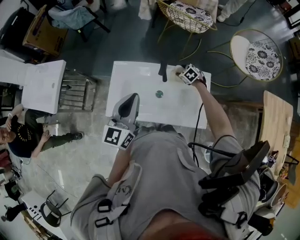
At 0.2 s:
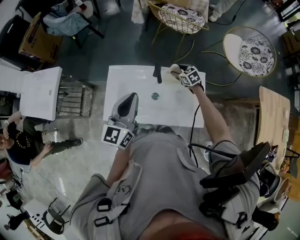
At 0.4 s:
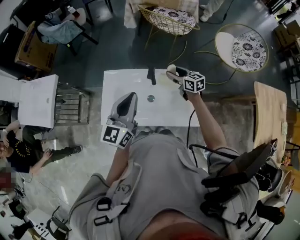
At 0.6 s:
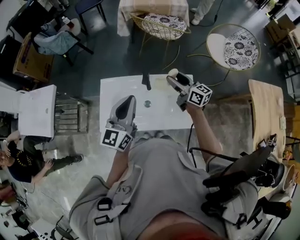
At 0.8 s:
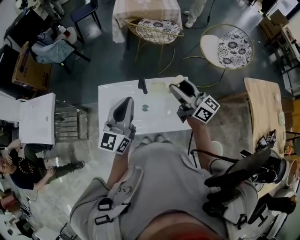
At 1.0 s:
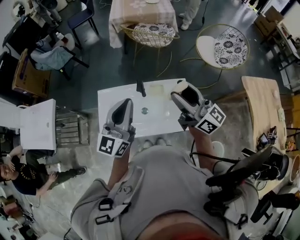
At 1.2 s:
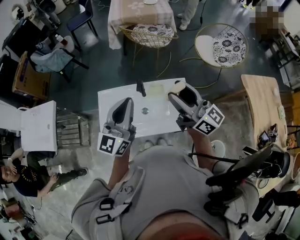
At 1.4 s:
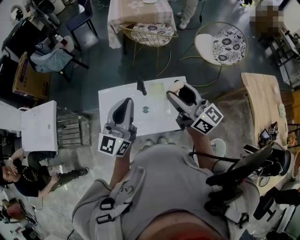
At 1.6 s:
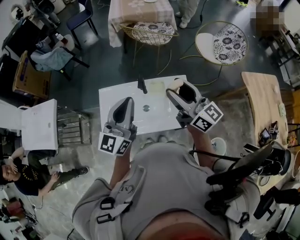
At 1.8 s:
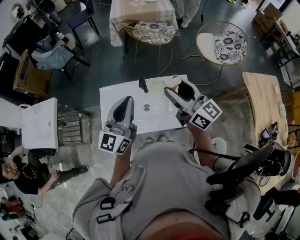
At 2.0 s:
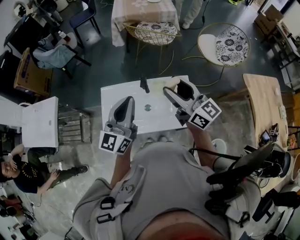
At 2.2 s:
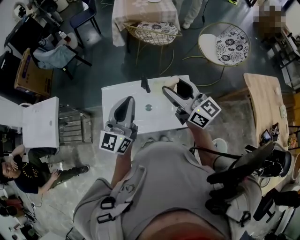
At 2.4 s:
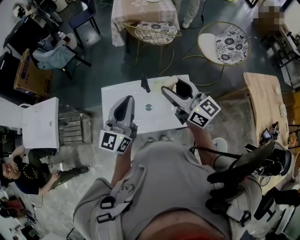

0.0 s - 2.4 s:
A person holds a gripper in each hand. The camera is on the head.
0.0 s - 1.2 s: The right gripper moves upward and backward, roughly 50 cm, and tilts its fingers approximately 80 degrees upward. Meanwhile the left gripper moves upward and to the right, about 10 cm, and swivels some 20 degrees.
1.2 s - 2.4 s: The right gripper changes place by roughly 5 cm.

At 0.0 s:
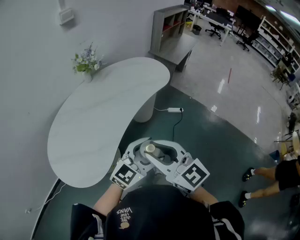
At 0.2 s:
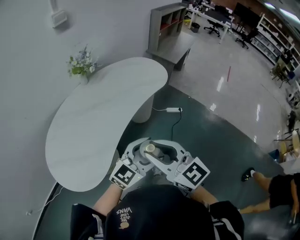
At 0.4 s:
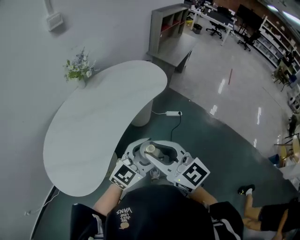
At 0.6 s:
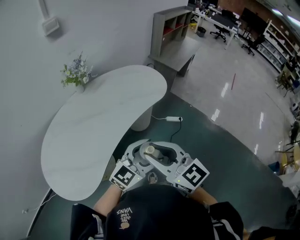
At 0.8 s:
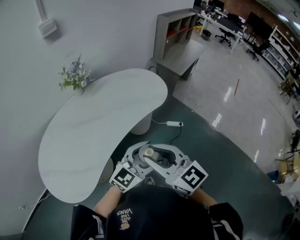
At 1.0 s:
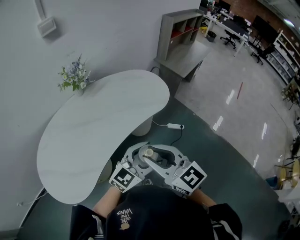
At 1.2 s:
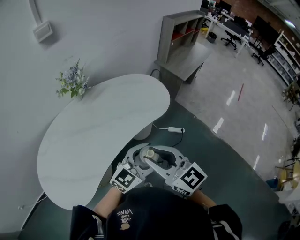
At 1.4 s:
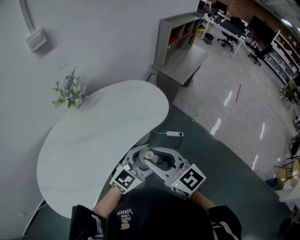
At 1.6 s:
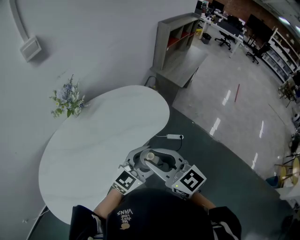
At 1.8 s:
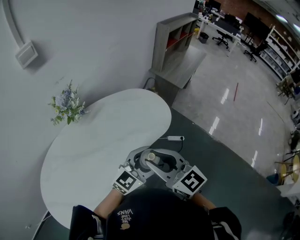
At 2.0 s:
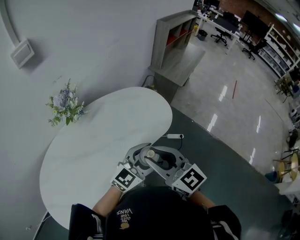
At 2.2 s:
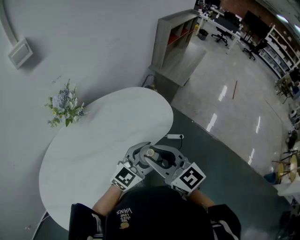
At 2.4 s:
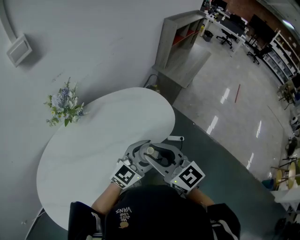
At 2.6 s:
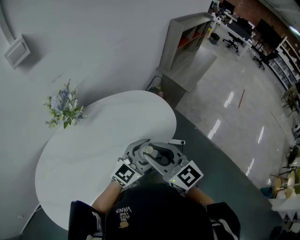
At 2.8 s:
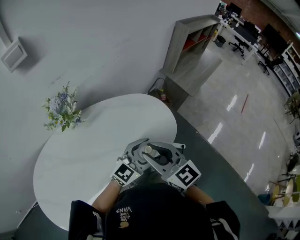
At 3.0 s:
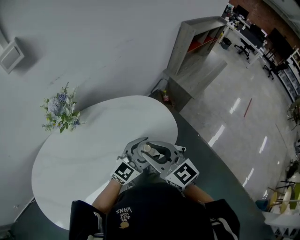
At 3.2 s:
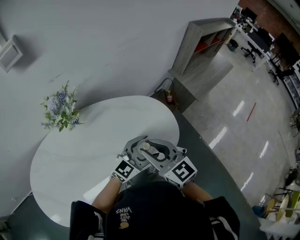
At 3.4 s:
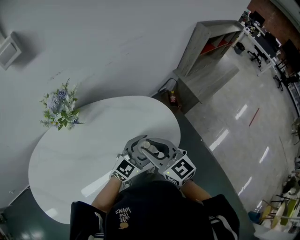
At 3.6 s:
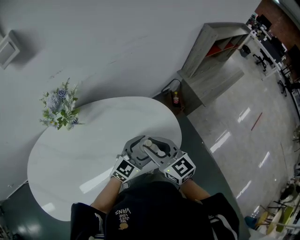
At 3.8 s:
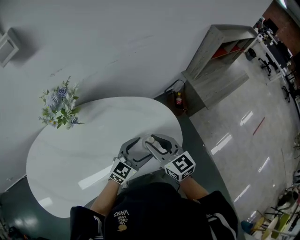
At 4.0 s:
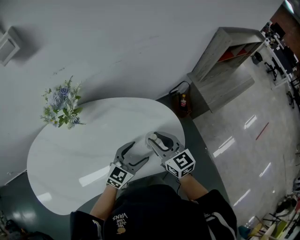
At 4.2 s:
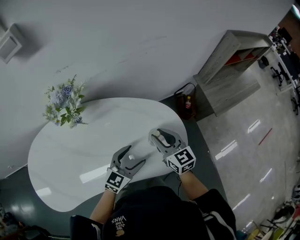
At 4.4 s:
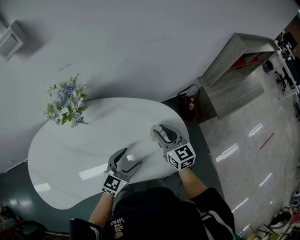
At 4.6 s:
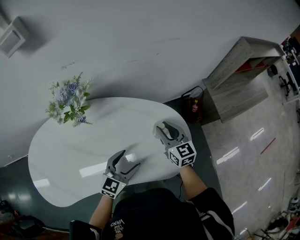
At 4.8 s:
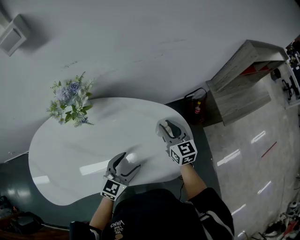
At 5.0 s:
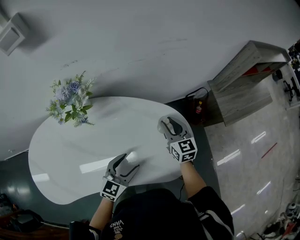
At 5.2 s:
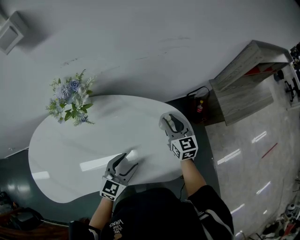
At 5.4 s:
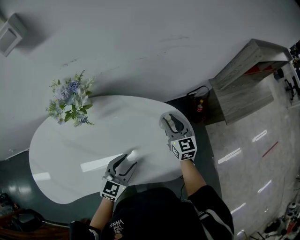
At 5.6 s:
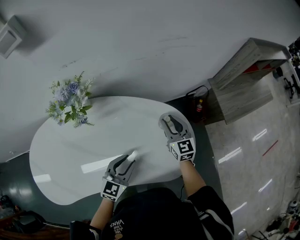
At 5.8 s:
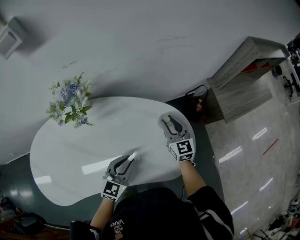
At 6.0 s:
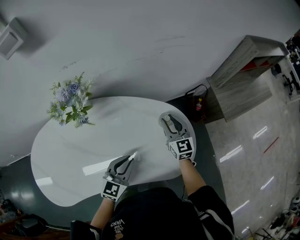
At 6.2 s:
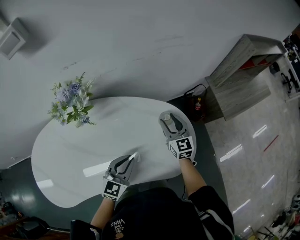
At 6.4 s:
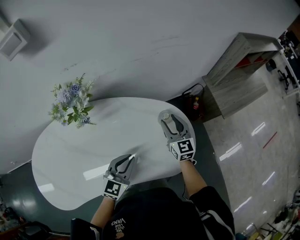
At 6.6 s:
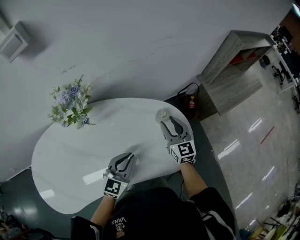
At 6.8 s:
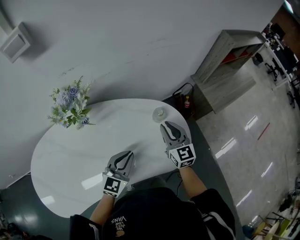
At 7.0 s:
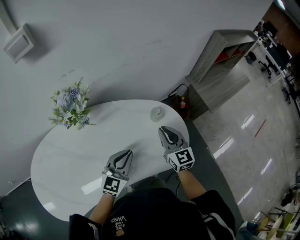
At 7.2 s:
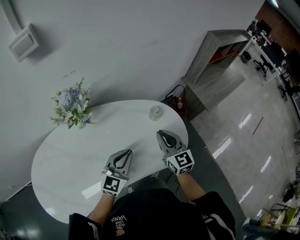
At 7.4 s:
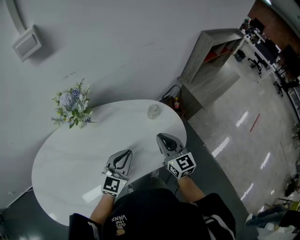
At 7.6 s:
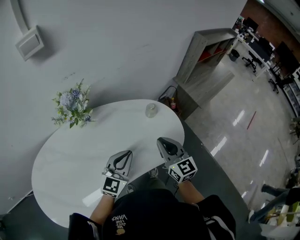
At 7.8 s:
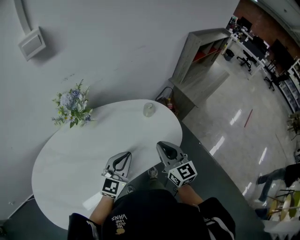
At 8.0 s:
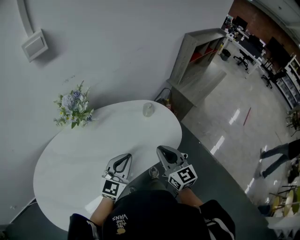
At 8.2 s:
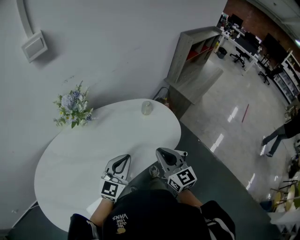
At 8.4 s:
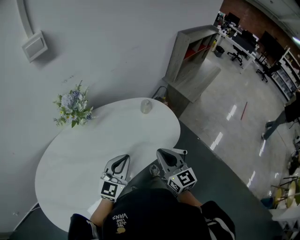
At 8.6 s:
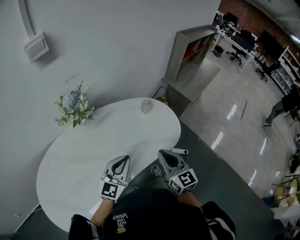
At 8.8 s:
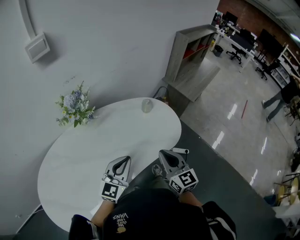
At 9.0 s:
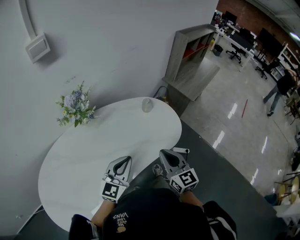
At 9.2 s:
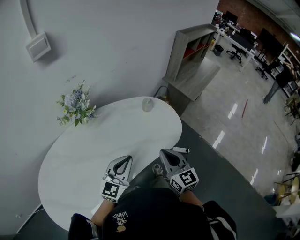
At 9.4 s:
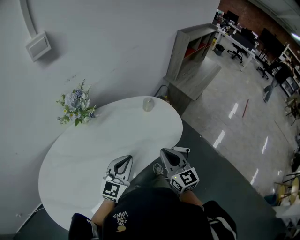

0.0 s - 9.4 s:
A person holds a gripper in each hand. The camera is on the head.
0.0 s - 1.6 s: Both grippers move forward, roughly 35 cm.
1.6 s - 3.2 s: Both grippers move forward, about 25 cm.
3.2 s - 4.8 s: The left gripper travels to the left, downward and forward by about 15 cm, and turns by about 40 degrees, while the right gripper goes about 30 cm forward and downward.
4.8 s - 6.2 s: The left gripper closes its fingers.
6.2 s - 7.8 s: The left gripper travels upward and backward by some 15 cm, and changes its angle by about 20 degrees, while the right gripper is displaced backward and upward by roughly 30 cm, and closes its fingers.
7.8 s - 9.4 s: The grippers both shift backward by some 10 cm.

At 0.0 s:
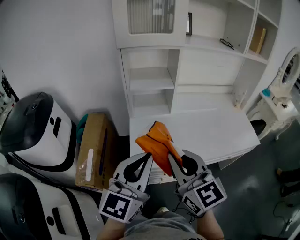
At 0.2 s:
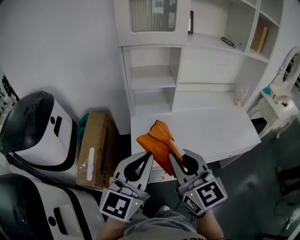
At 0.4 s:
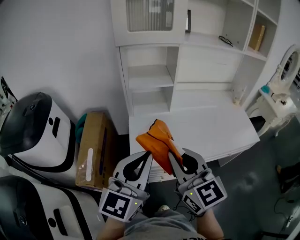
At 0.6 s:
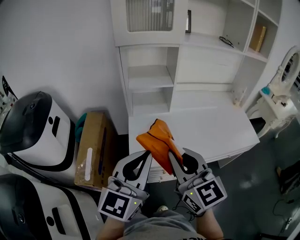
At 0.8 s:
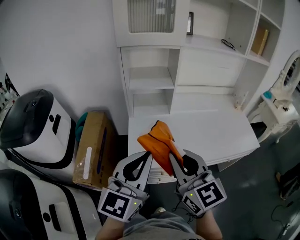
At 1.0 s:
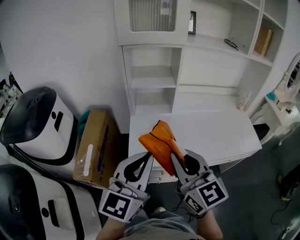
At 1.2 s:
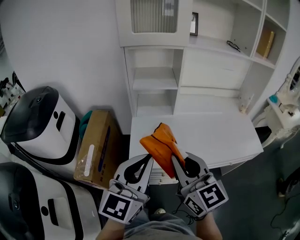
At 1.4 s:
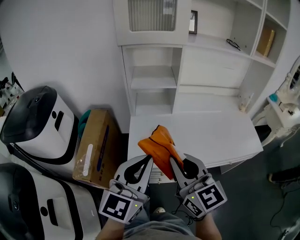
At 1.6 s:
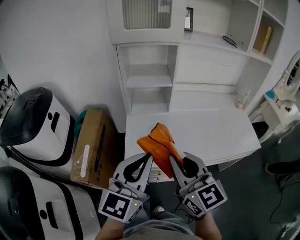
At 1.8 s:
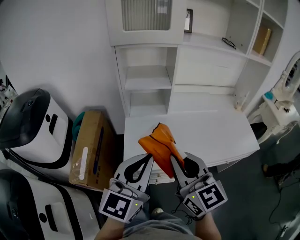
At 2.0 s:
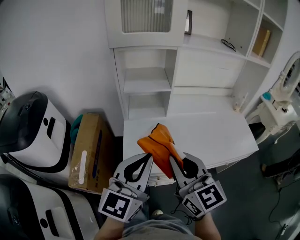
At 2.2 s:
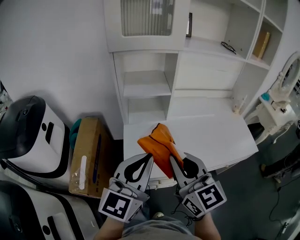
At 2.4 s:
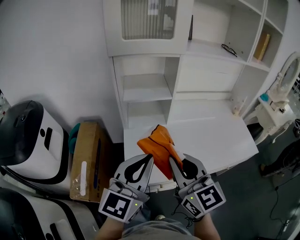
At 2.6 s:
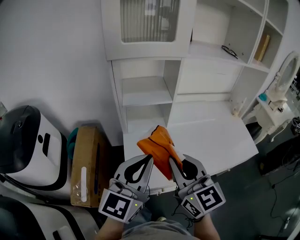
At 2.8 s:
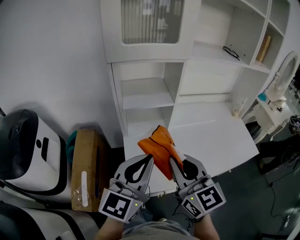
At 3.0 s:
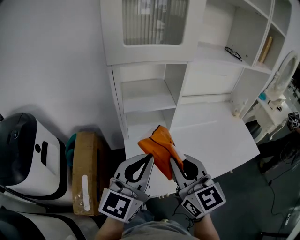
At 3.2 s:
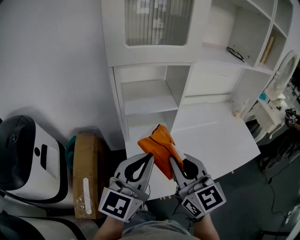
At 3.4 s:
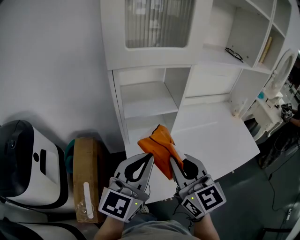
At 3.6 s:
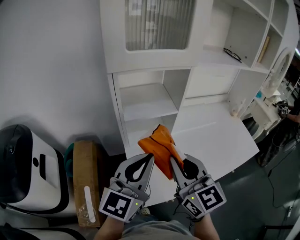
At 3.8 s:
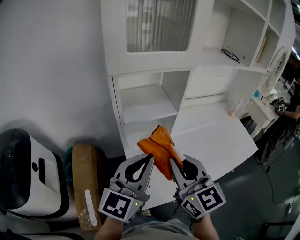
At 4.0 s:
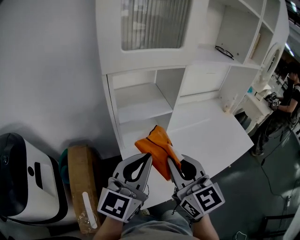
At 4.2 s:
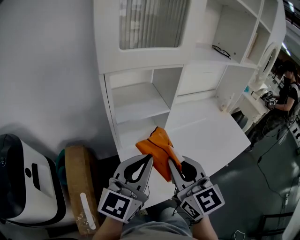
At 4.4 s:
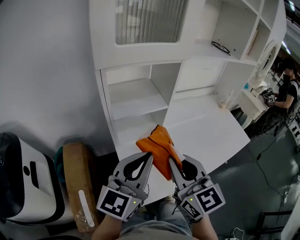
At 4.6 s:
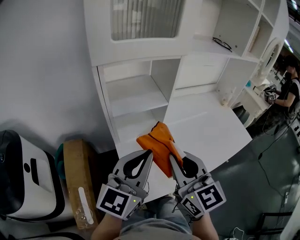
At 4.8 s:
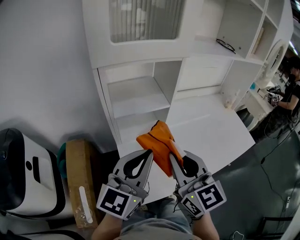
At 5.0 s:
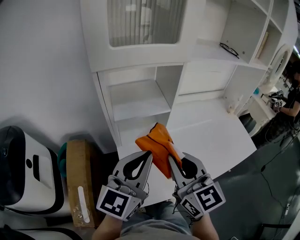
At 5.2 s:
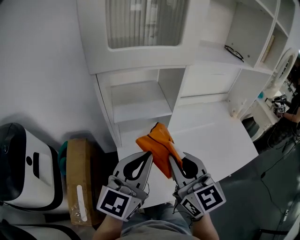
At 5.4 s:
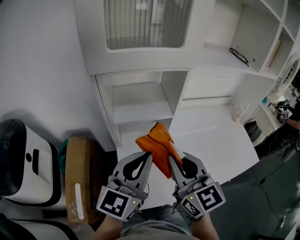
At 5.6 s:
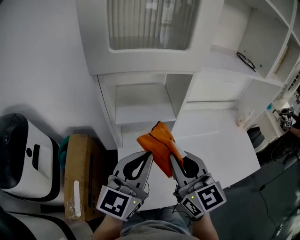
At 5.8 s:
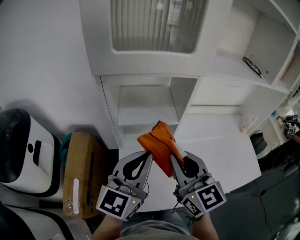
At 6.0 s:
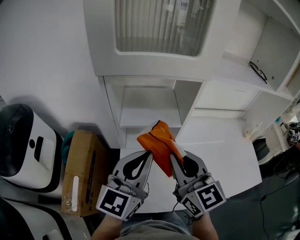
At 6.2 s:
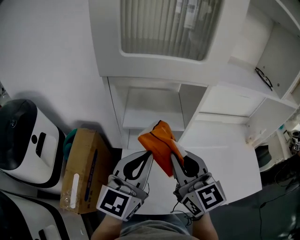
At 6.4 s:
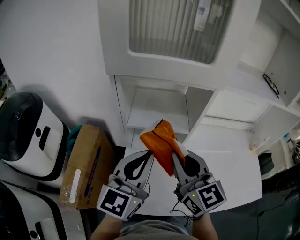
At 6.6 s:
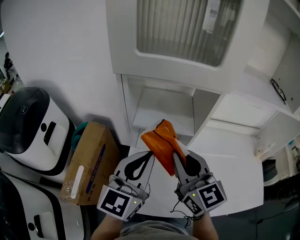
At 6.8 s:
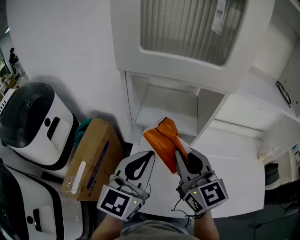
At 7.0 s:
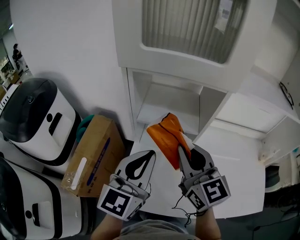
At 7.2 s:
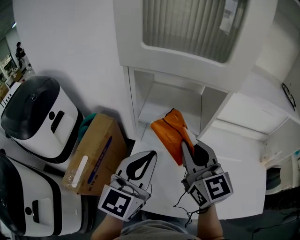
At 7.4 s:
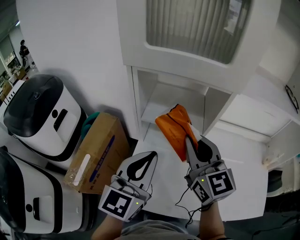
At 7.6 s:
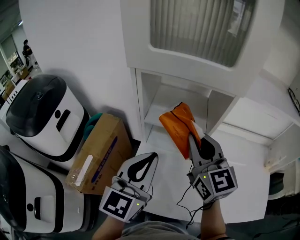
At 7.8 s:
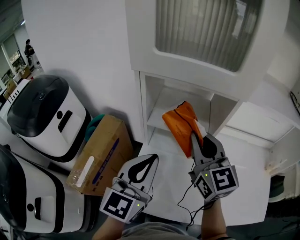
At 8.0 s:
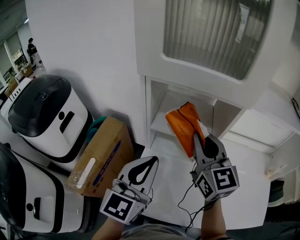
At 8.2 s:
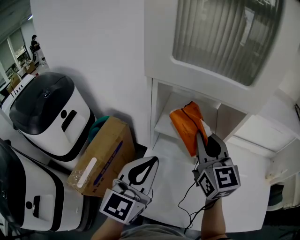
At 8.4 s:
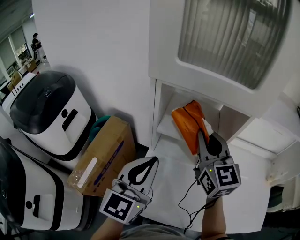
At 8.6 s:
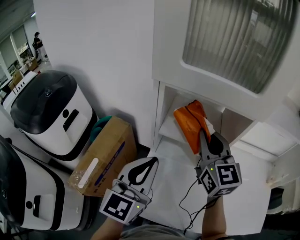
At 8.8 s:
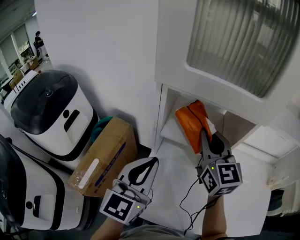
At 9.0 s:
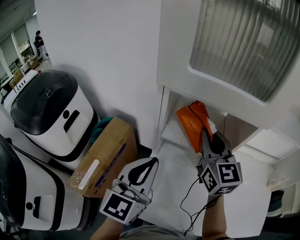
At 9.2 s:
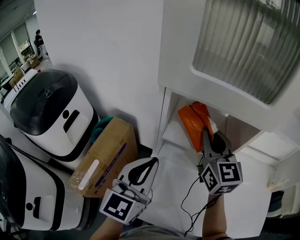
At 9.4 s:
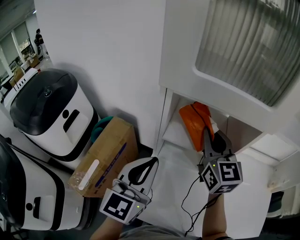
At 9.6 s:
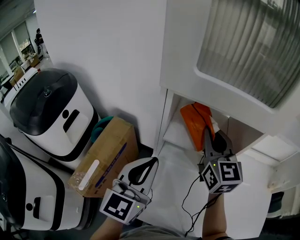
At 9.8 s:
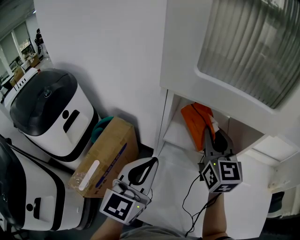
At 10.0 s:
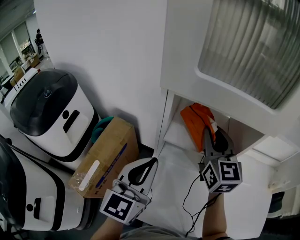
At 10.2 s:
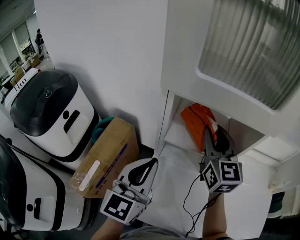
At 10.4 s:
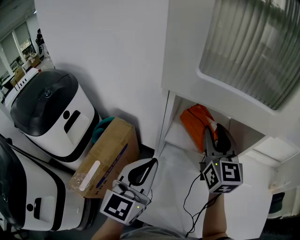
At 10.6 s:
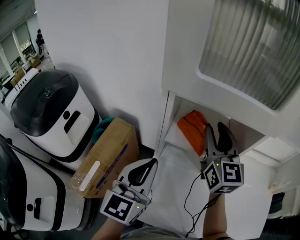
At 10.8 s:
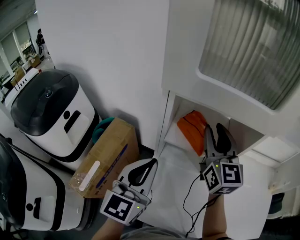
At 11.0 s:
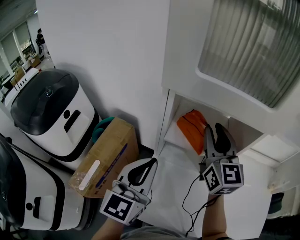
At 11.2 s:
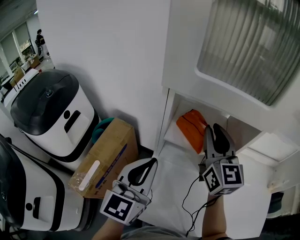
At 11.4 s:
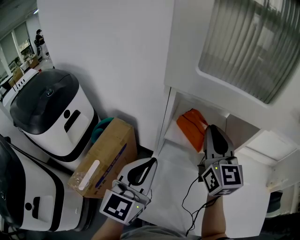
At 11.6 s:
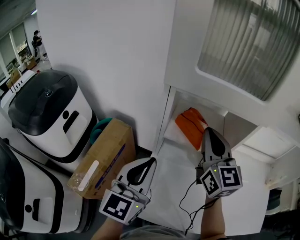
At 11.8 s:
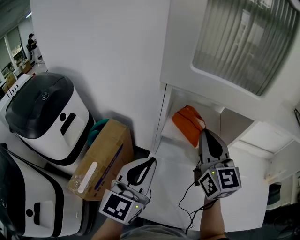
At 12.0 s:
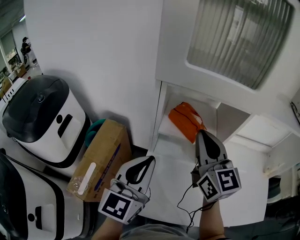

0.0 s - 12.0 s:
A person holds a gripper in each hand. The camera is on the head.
0.0 s - 1.6 s: There are only small adjustments of the grippers.
1.6 s - 3.0 s: The two grippers go some 15 cm forward and to the left.
3.0 s - 4.4 s: The left gripper ends up roughly 5 cm from where it was.
4.4 s - 6.0 s: The grippers both shift forward by roughly 10 cm. The left gripper turns by roughly 20 degrees.
6.0 s - 7.6 s: The right gripper heads forward, covering roughly 10 cm.
7.6 s - 9.0 s: The left gripper is displaced to the left by approximately 5 cm; the right gripper travels forward by about 10 cm.
9.0 s - 10.4 s: The right gripper opens.
10.4 s - 12.0 s: The right gripper travels backward by about 10 cm, and closes up.
